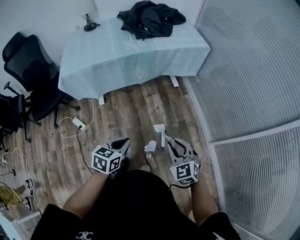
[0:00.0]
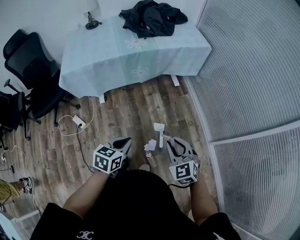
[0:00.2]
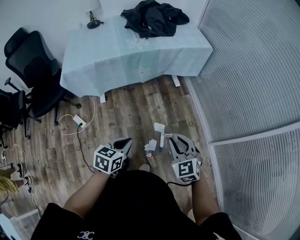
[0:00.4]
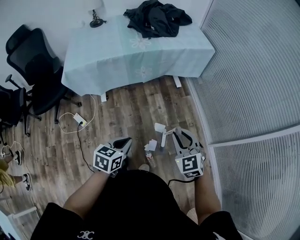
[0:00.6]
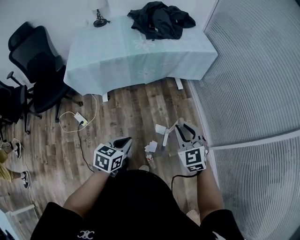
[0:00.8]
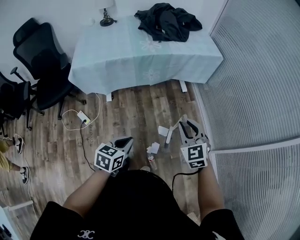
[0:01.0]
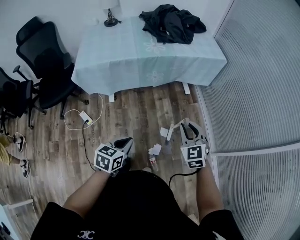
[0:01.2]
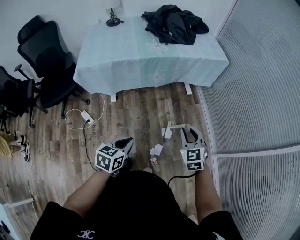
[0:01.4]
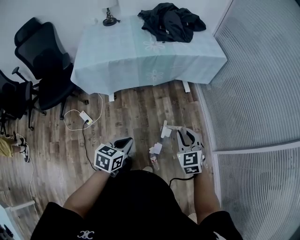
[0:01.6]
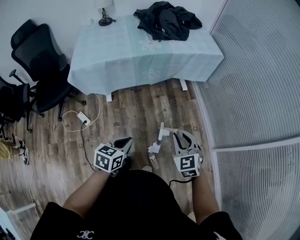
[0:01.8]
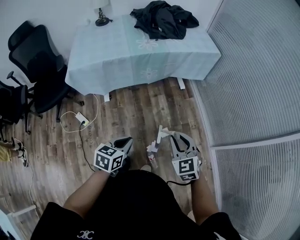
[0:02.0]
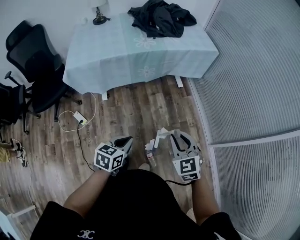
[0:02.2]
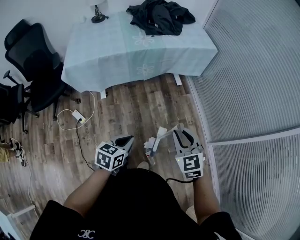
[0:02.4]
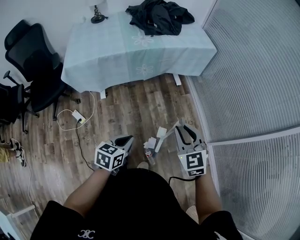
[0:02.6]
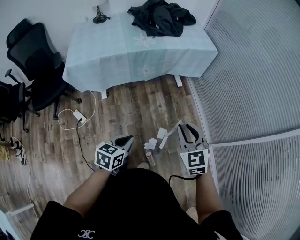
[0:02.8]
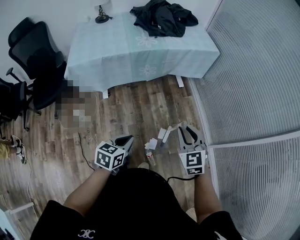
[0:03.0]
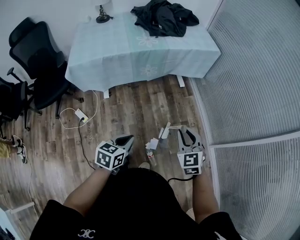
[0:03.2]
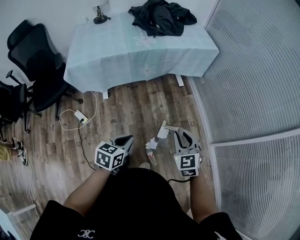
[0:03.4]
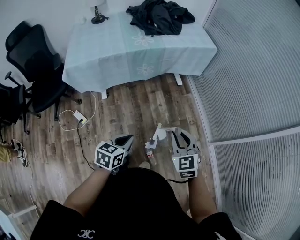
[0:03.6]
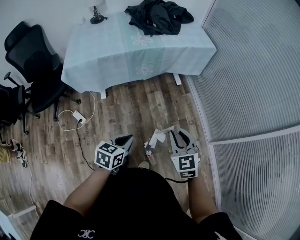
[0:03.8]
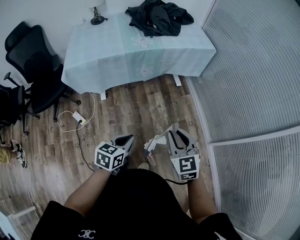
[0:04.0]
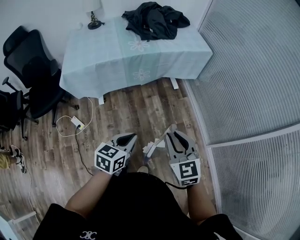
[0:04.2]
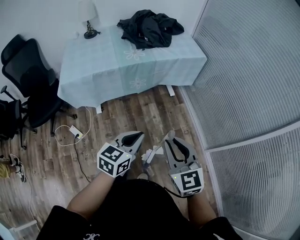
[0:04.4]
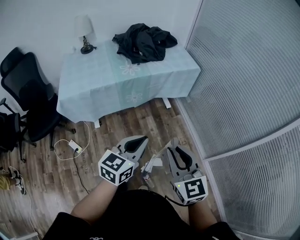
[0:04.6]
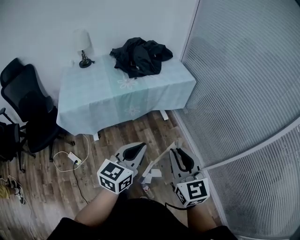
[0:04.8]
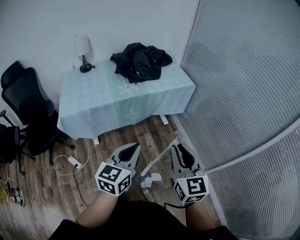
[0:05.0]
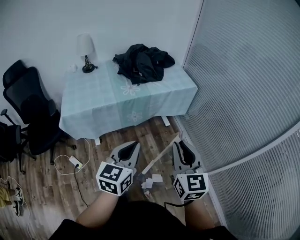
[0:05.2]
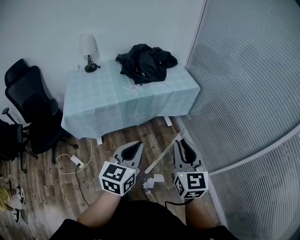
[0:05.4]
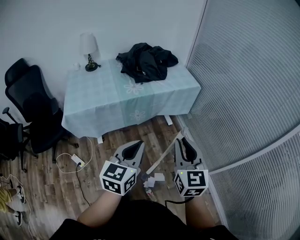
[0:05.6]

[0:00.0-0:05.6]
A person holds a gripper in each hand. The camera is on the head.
0.0 to 1.4 s: The left gripper is displaced to the left by roughly 5 cm. Meanwhile the right gripper moves forward, roughly 10 cm.
1.4 to 2.8 s: The right gripper is displaced upward by roughly 5 cm.
2.8 to 4.2 s: The right gripper moves approximately 5 cm downward and comes back, while the left gripper ends up roughly 5 cm from where it was.
4.2 to 5.6 s: The two grippers go approximately 20 cm upward and forward. The left gripper turns by roughly 20 degrees. The right gripper changes its angle by approximately 20 degrees.

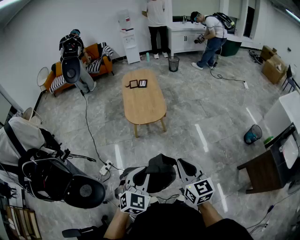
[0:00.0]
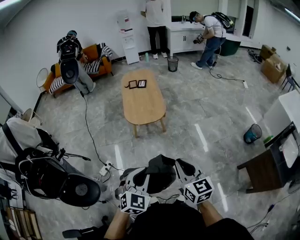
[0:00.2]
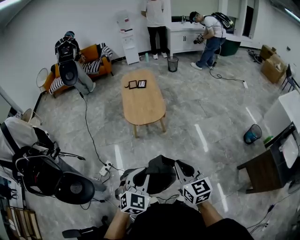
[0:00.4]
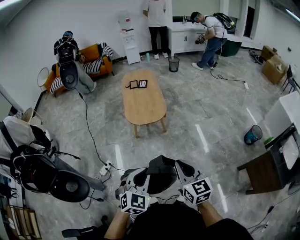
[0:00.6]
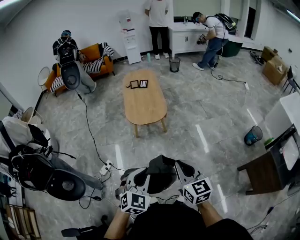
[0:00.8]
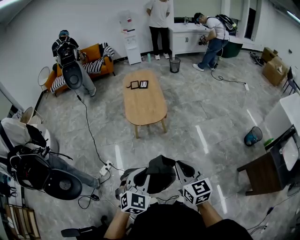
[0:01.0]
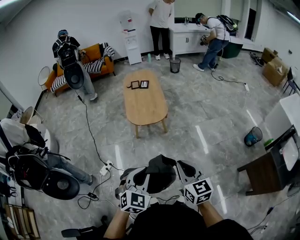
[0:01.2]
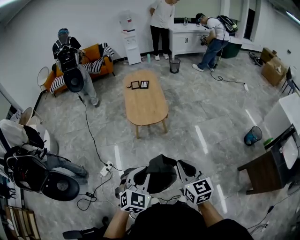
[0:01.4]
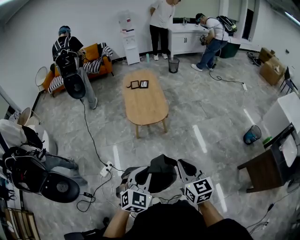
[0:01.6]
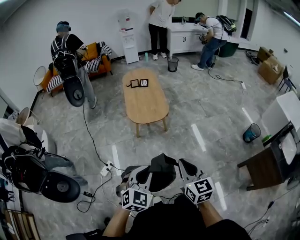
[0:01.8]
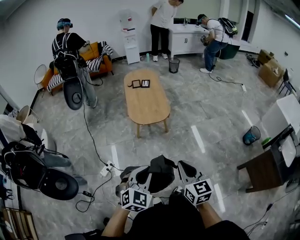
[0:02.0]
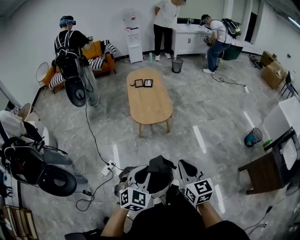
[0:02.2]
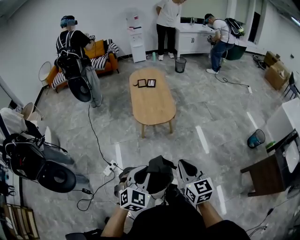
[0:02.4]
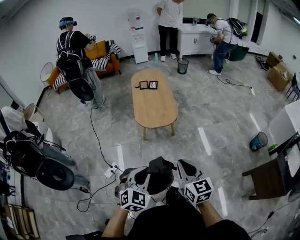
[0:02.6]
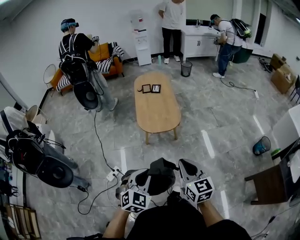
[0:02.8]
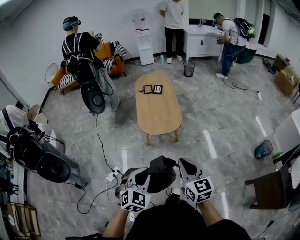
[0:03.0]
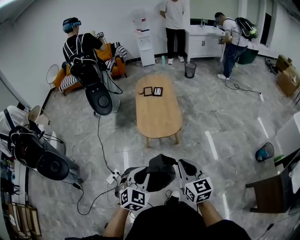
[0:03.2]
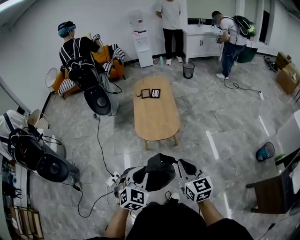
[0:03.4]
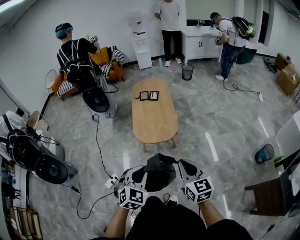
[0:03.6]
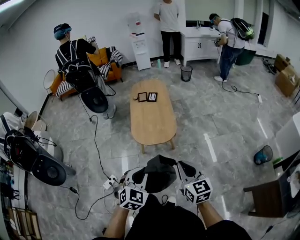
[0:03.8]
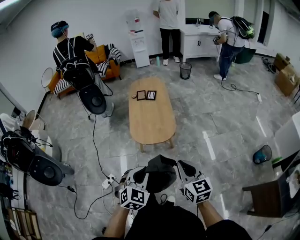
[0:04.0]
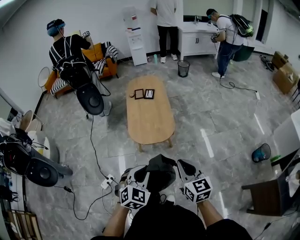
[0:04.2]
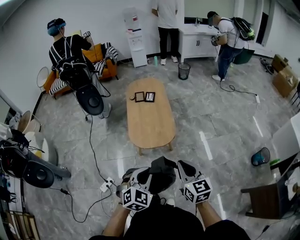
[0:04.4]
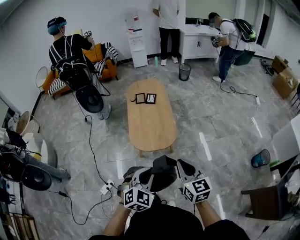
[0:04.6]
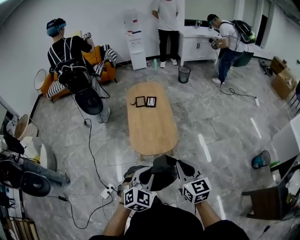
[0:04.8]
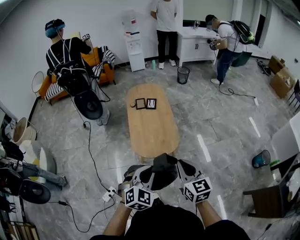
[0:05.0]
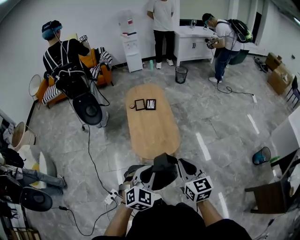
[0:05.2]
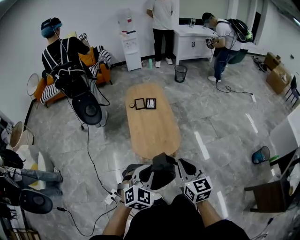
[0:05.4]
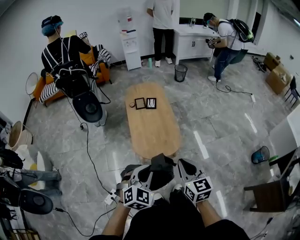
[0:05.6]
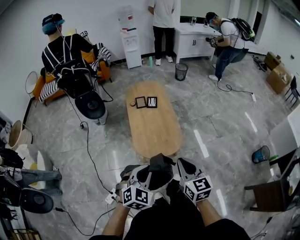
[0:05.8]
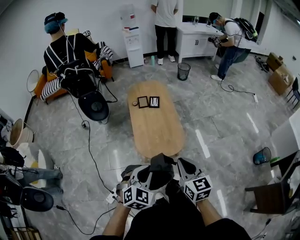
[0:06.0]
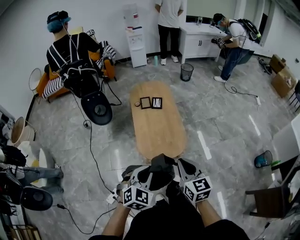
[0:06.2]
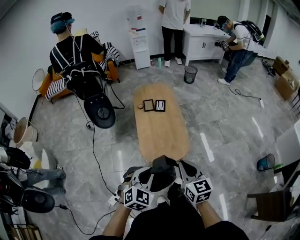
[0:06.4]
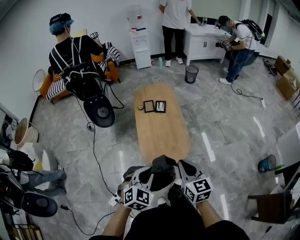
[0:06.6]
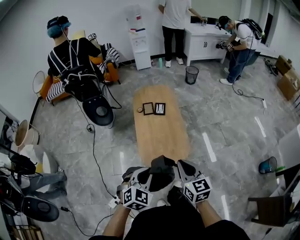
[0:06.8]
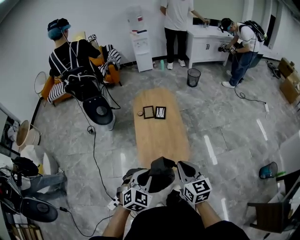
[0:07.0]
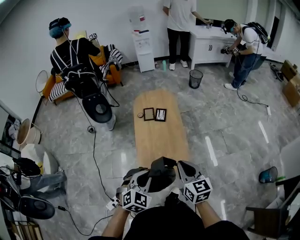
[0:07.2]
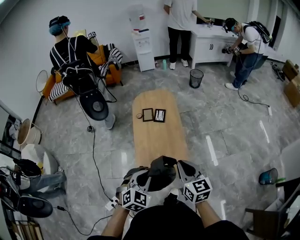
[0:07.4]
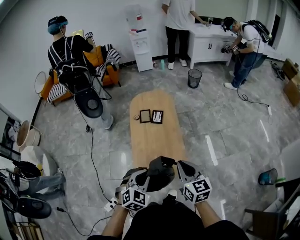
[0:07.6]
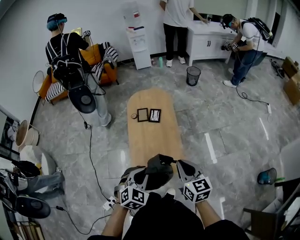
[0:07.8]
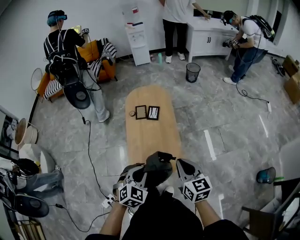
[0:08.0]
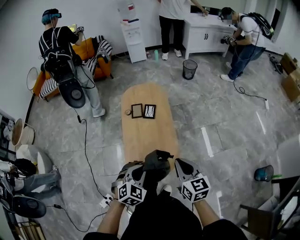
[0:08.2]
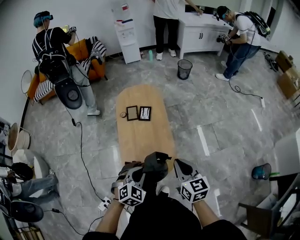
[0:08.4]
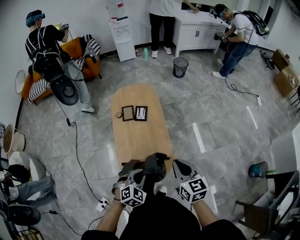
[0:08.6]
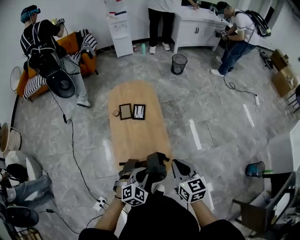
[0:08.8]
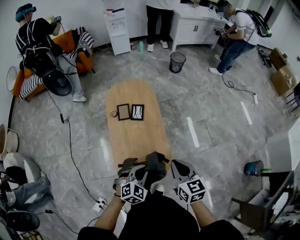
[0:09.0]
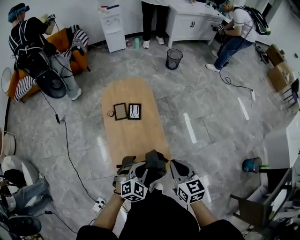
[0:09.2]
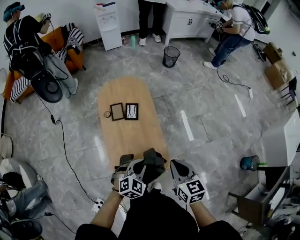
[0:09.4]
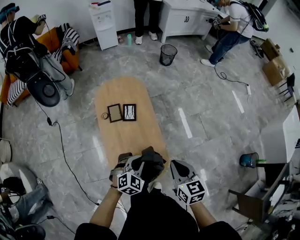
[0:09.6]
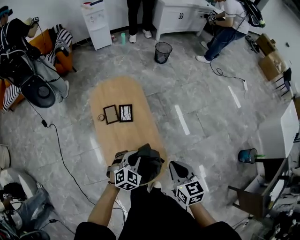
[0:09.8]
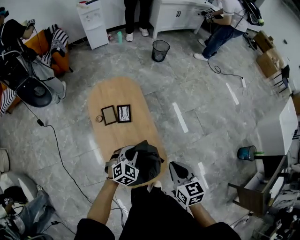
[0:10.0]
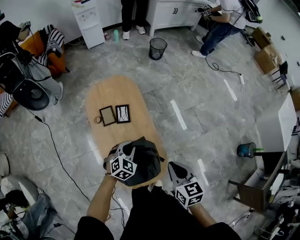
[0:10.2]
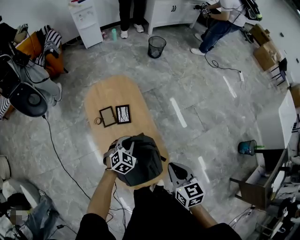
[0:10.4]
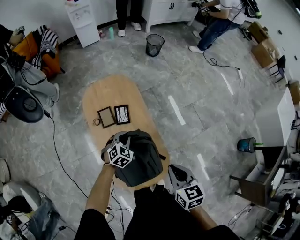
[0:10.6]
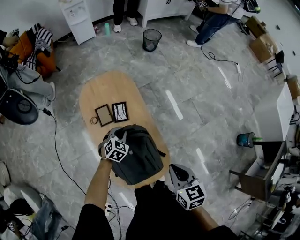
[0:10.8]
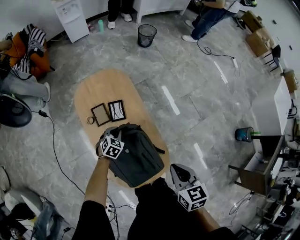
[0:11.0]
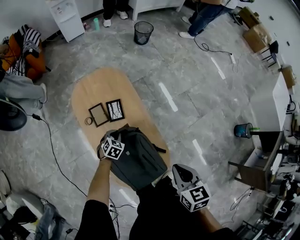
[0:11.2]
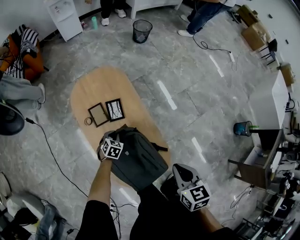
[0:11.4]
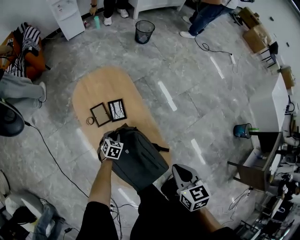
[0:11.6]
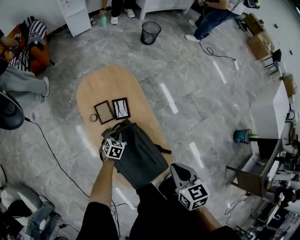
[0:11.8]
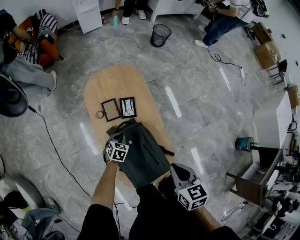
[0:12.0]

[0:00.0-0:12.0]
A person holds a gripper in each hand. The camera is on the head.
0.0 to 1.6 s: The grippers move only a little.
1.6 to 3.0 s: The two grippers go about 10 cm forward.
3.0 to 4.4 s: The two grippers go some 15 cm forward and to the right.
4.4 to 6.0 s: Both grippers move to the left and forward, about 20 cm.
6.0 to 7.6 s: The two grippers go about 20 cm forward.
7.6 to 9.0 s: The right gripper heads forward, covering some 10 cm; the left gripper shifts some 15 cm forward, downward and to the right.
9.0 to 10.4 s: The left gripper travels forward by some 25 cm. The right gripper travels forward by about 5 cm.
10.4 to 12.0 s: The left gripper heads downward and to the left, covering roughly 20 cm, and turns by about 30 degrees, while the right gripper goes about 5 cm to the left.

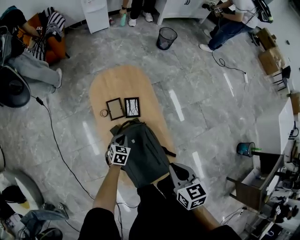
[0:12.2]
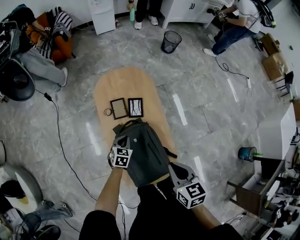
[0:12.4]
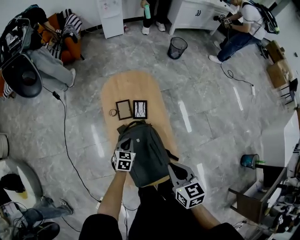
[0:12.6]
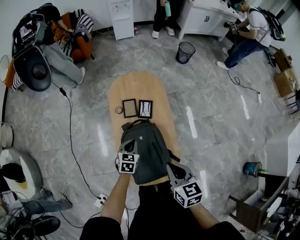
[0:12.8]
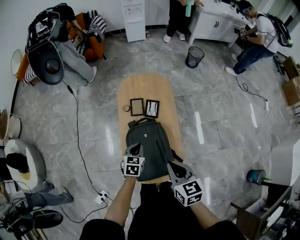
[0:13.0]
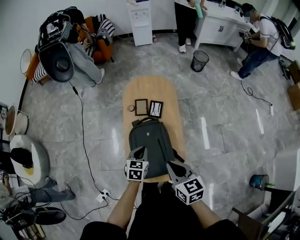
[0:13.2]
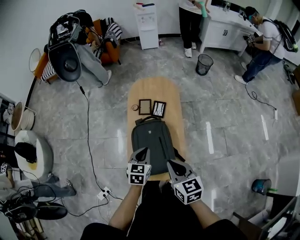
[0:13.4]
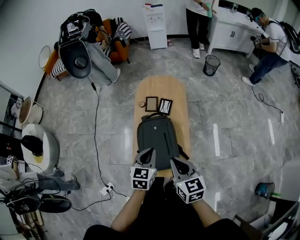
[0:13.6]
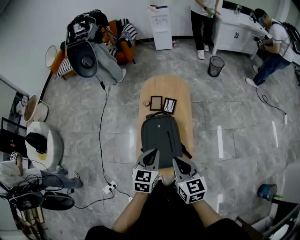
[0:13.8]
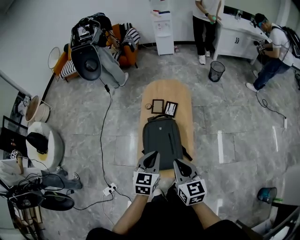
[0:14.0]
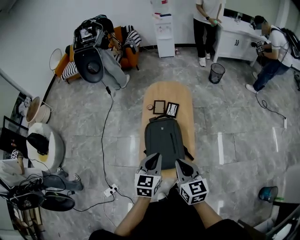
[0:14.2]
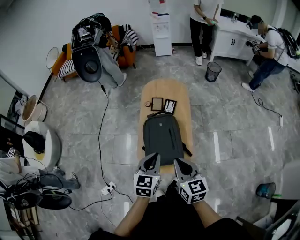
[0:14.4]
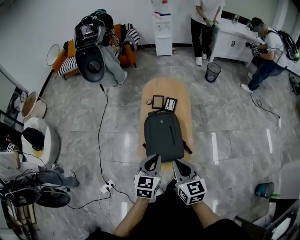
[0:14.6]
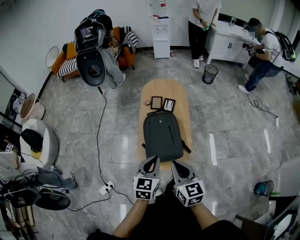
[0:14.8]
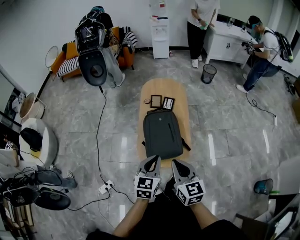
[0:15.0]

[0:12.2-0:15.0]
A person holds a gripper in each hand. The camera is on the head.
12.2 to 13.6 s: The right gripper heads backward and upward, covering about 15 cm, and swivels approximately 30 degrees. Meanwhile the left gripper heads upward and backward, covering roughly 35 cm, and rotates approximately 30 degrees.
13.6 to 15.0 s: The left gripper shifts about 15 cm backward and upward, while the right gripper travels backward and to the left by roughly 15 cm.

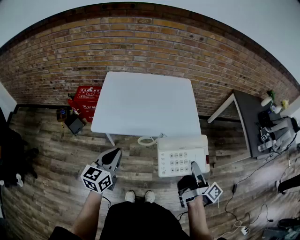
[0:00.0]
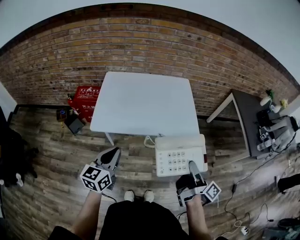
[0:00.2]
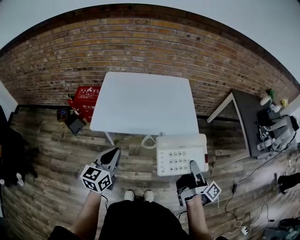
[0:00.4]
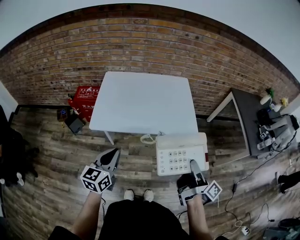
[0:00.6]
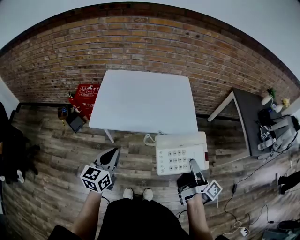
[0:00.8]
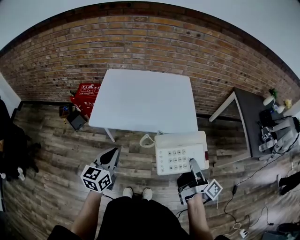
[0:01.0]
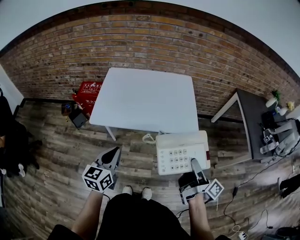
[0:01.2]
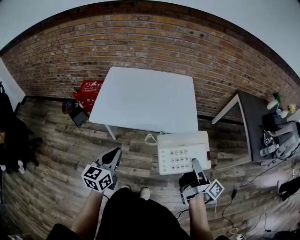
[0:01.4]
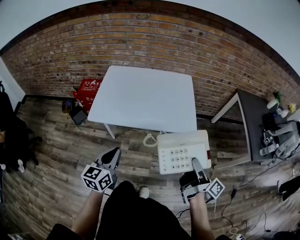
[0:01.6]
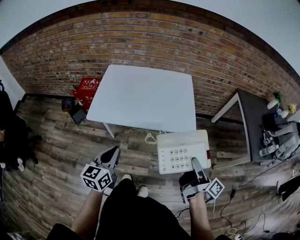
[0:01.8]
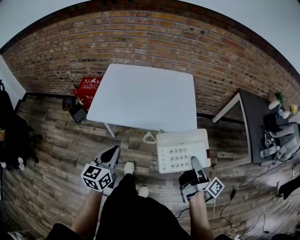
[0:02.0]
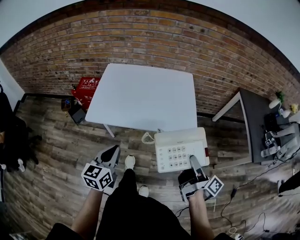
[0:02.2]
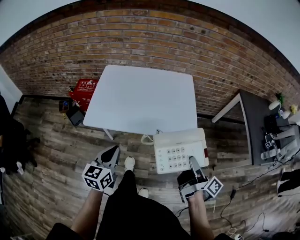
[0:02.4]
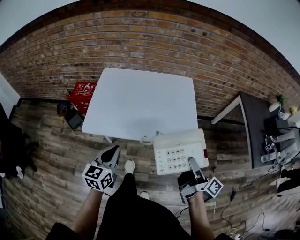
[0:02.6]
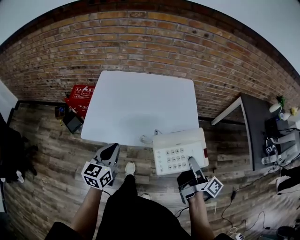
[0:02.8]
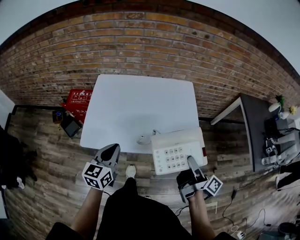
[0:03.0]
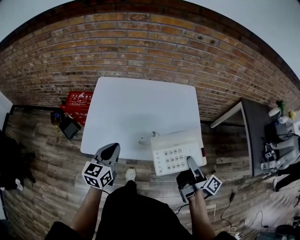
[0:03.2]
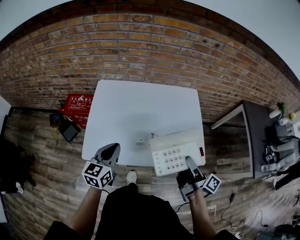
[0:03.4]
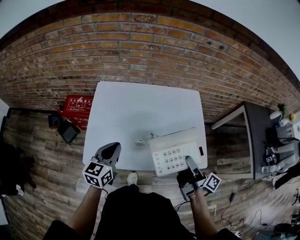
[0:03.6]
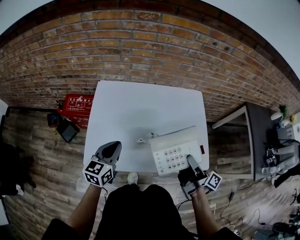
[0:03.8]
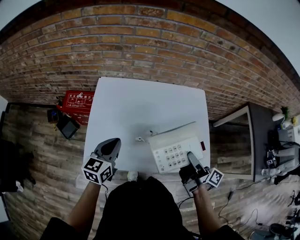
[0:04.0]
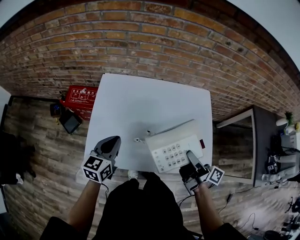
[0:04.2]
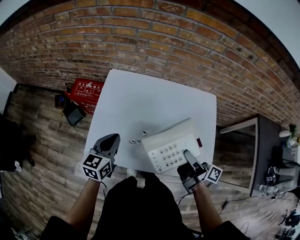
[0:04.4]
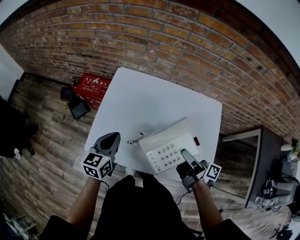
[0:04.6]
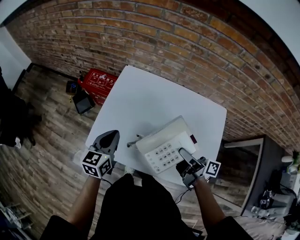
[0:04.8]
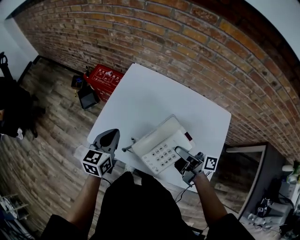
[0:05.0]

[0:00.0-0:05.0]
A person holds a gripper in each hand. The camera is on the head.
0.0 to 1.6 s: The left gripper shifts by some 10 cm.
1.6 to 3.4 s: The left gripper shifts by approximately 30 cm.
3.4 to 5.0 s: The left gripper changes place by about 10 cm, and swivels roughly 20 degrees.
